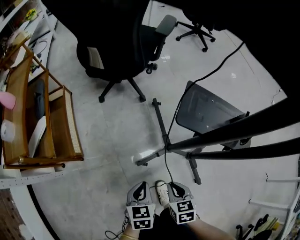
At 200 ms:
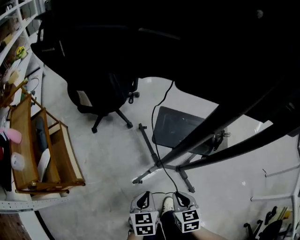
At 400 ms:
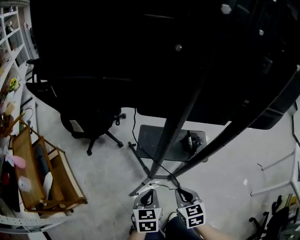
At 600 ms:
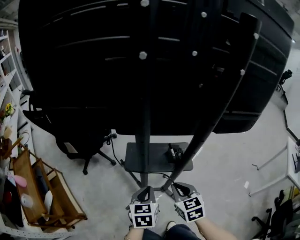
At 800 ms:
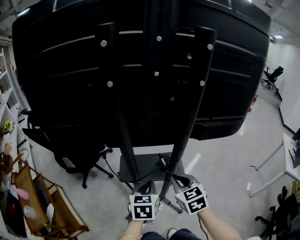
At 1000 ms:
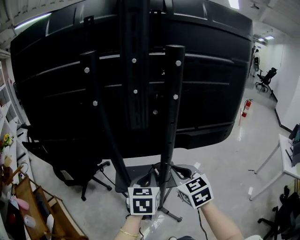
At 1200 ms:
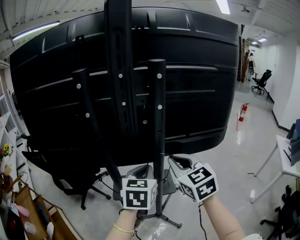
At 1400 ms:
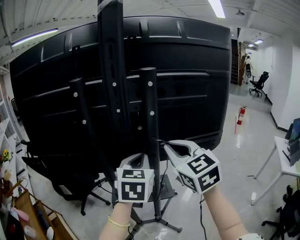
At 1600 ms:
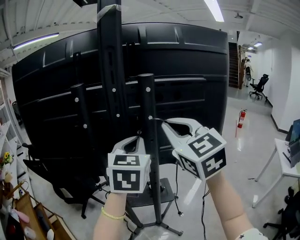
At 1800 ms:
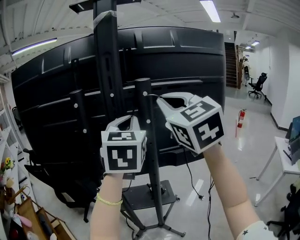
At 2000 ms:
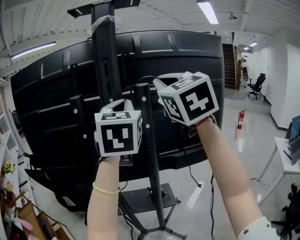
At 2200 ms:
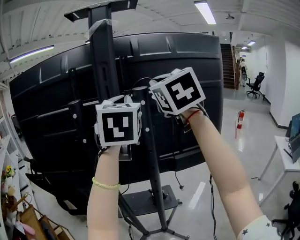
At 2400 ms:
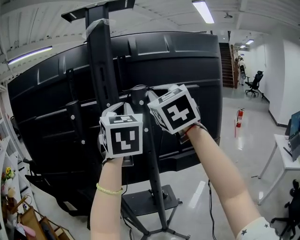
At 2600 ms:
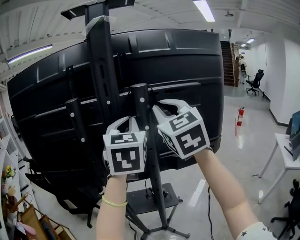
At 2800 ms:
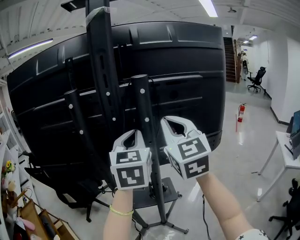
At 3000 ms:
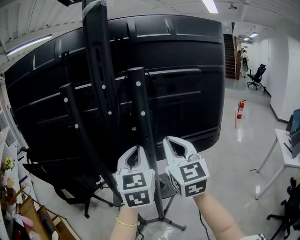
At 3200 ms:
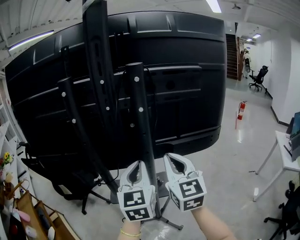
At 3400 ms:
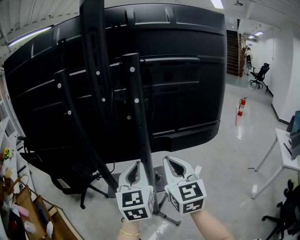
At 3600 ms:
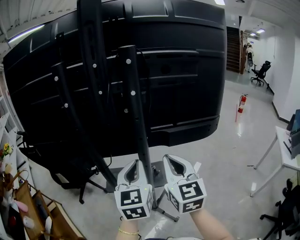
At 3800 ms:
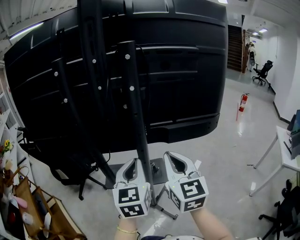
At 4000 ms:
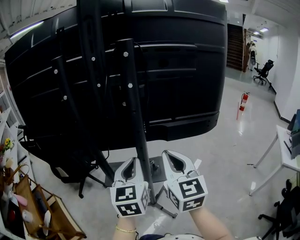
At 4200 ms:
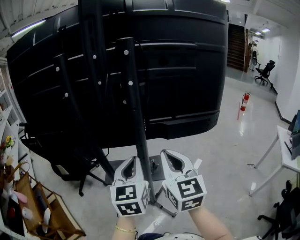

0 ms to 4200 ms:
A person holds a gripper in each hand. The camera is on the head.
0 ms to 1400 ms: Both grippers travel together upward, roughly 70 cm. The right gripper tips its fingers upward by approximately 50 degrees; the left gripper points its fingers approximately 30 degrees further upward.
1400 ms to 2800 ms: The two grippers go about 10 cm upward.
2800 ms to 4200 ms: The two grippers go approximately 20 cm downward and backward.

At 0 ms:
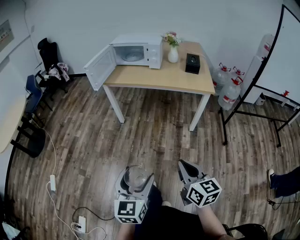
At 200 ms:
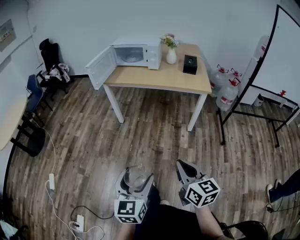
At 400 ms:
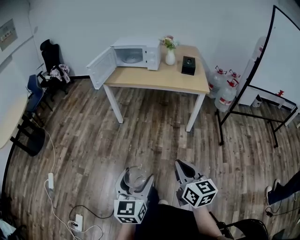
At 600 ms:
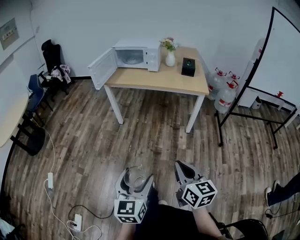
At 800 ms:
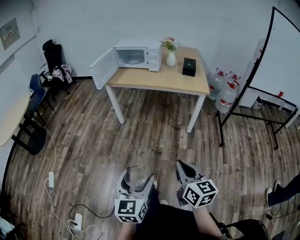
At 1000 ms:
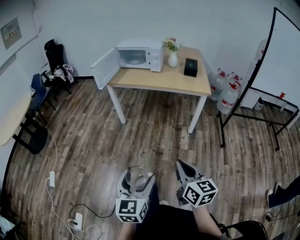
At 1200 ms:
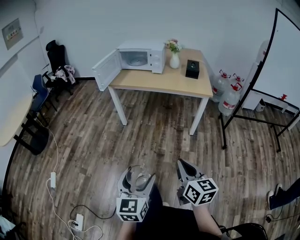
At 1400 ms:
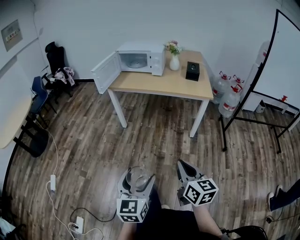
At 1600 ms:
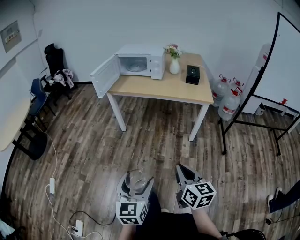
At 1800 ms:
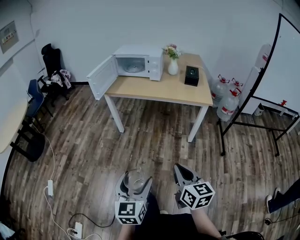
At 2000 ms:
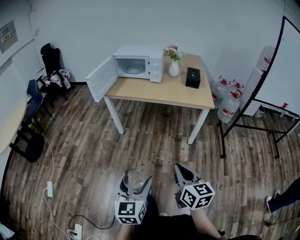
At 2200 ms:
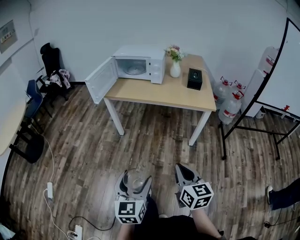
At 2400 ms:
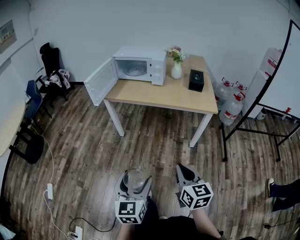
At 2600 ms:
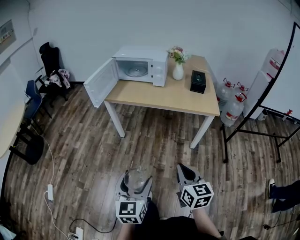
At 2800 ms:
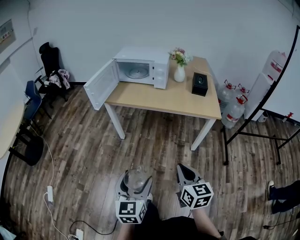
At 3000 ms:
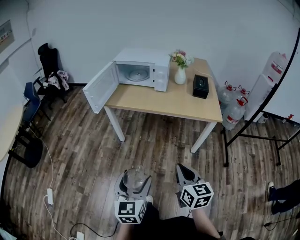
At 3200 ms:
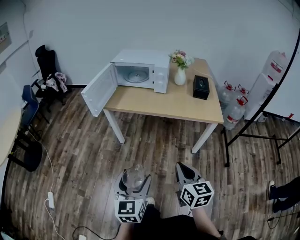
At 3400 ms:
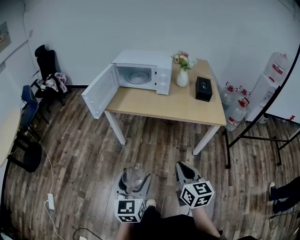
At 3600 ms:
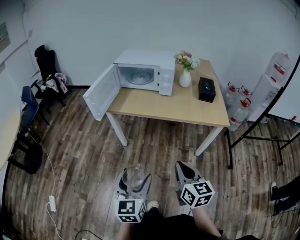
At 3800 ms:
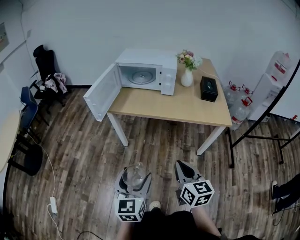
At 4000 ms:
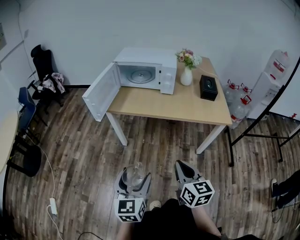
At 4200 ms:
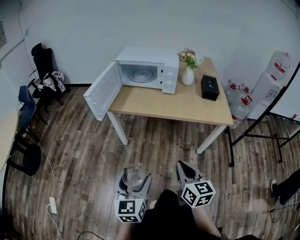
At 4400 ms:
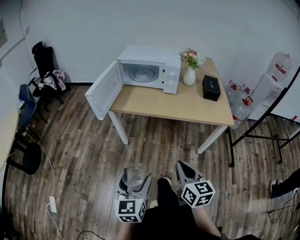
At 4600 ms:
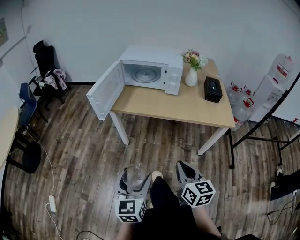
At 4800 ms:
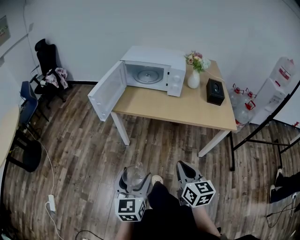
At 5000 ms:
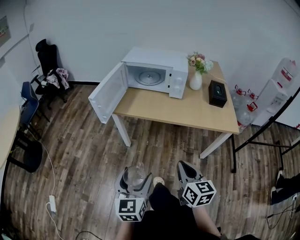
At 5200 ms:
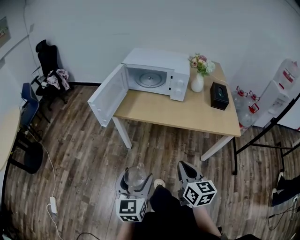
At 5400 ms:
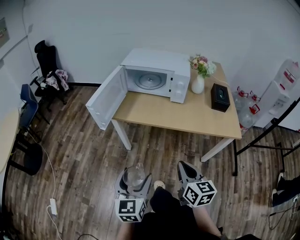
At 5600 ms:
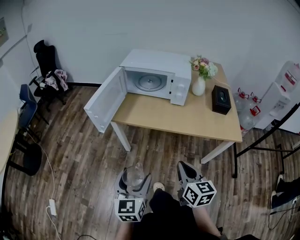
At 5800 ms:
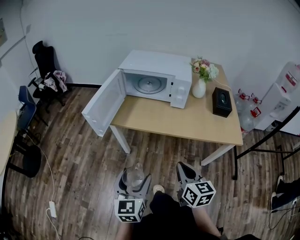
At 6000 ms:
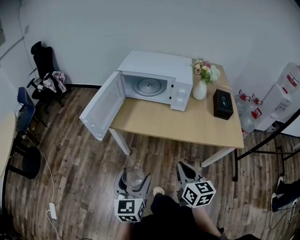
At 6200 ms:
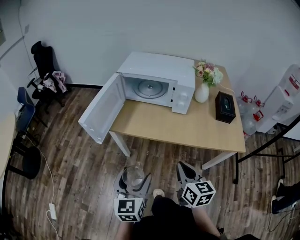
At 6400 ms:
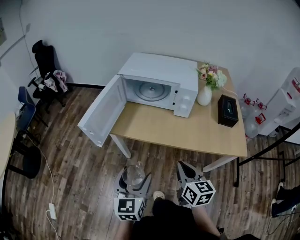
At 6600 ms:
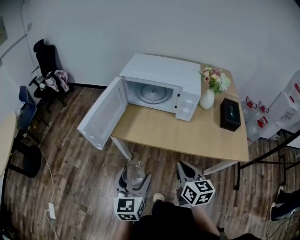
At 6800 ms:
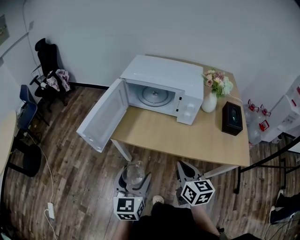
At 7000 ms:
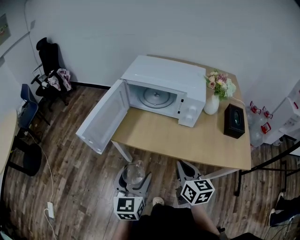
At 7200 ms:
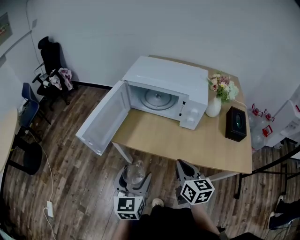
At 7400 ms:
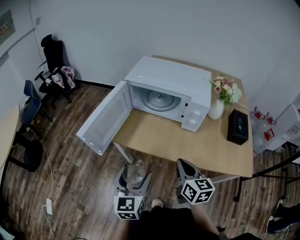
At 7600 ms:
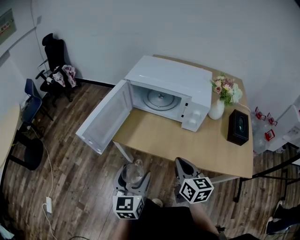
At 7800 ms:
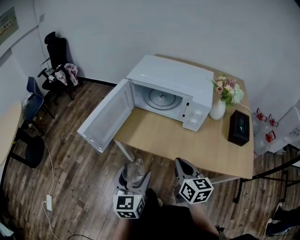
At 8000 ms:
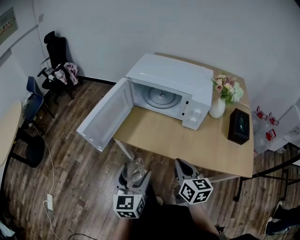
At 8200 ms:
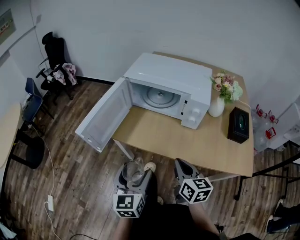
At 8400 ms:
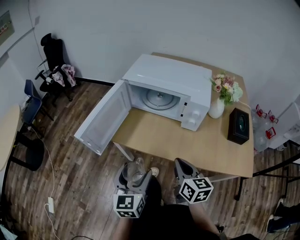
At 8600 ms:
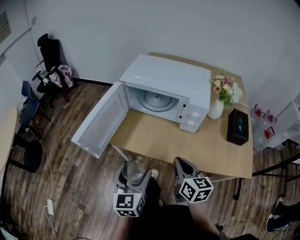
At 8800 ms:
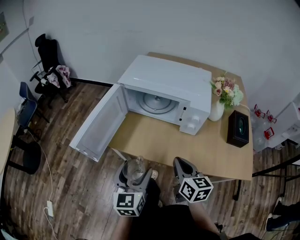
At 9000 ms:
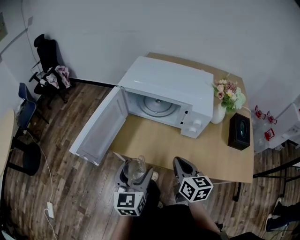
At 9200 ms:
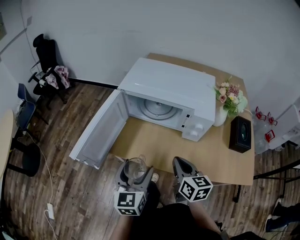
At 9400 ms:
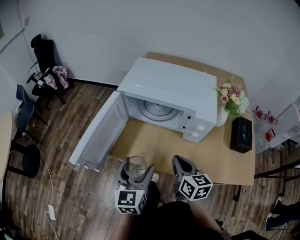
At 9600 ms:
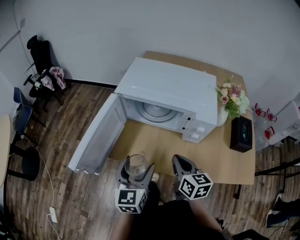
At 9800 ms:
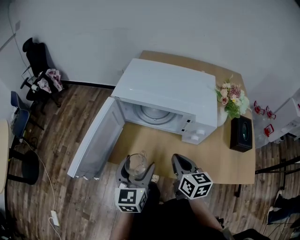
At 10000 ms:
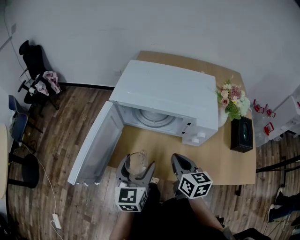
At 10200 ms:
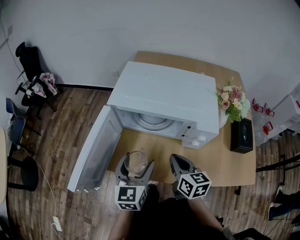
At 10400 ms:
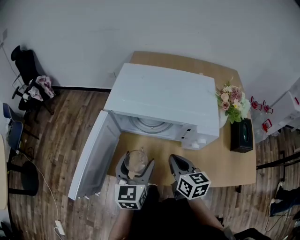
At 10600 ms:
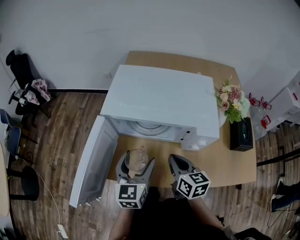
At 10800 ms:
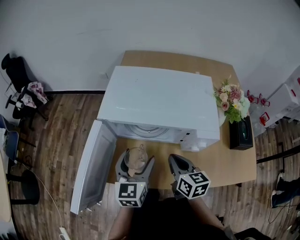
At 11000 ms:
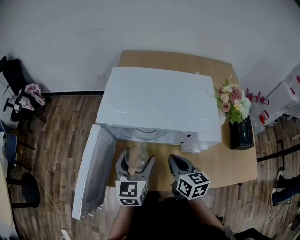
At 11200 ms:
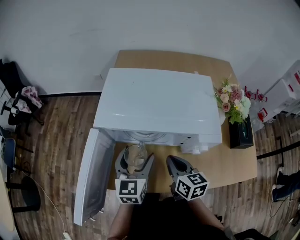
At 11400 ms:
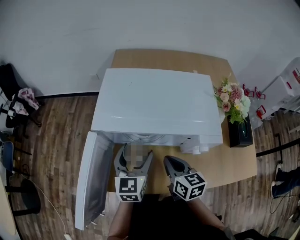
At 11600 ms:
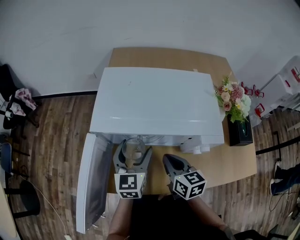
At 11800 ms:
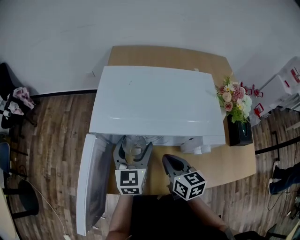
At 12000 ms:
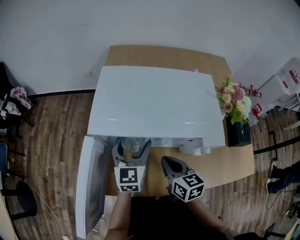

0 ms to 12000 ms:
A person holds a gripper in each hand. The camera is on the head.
0 ms to 1600 ms: The right gripper moves roughly 10 cm backward and comes back. Meanwhile the left gripper goes backward and returns, approximately 10 cm each way.
1600 ms to 3000 ms: The grippers both shift forward by about 20 cm.
3000 ms to 4400 ms: Both grippers move forward and to the left, about 15 cm.
4400 ms to 6000 ms: The grippers both shift forward by roughly 20 cm.
6000 ms to 7600 ms: The grippers both shift forward by approximately 15 cm.
7600 ms to 9000 ms: Both grippers move forward, approximately 10 cm.
9000 ms to 10400 ms: The two grippers go approximately 15 cm forward.
10400 ms to 12000 ms: The left gripper moves forward, approximately 15 cm. Meanwhile the right gripper shifts about 5 cm forward.

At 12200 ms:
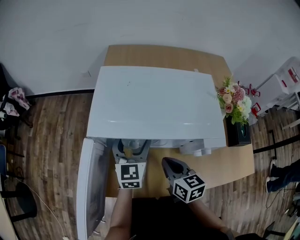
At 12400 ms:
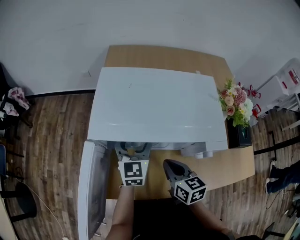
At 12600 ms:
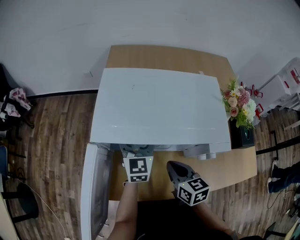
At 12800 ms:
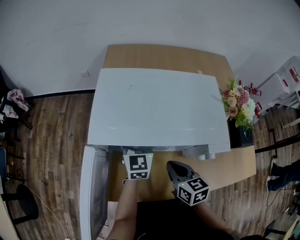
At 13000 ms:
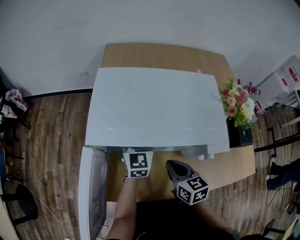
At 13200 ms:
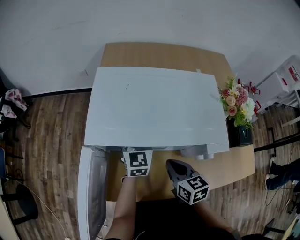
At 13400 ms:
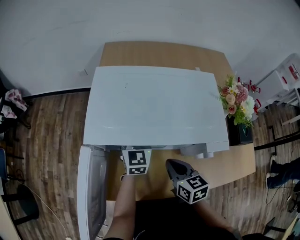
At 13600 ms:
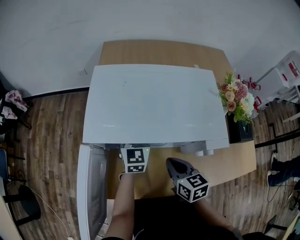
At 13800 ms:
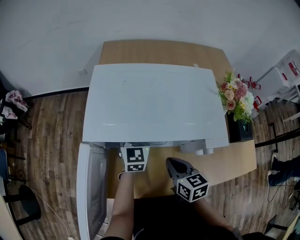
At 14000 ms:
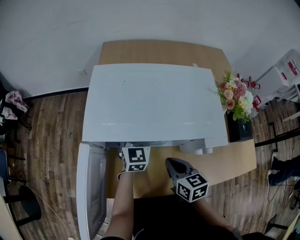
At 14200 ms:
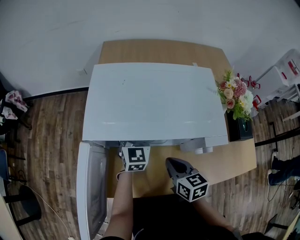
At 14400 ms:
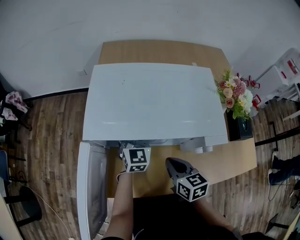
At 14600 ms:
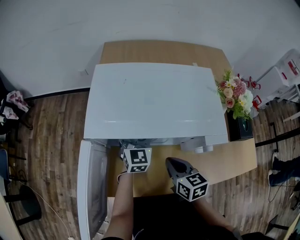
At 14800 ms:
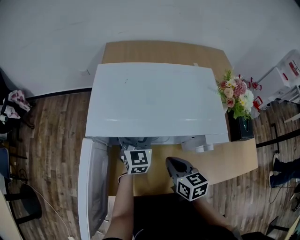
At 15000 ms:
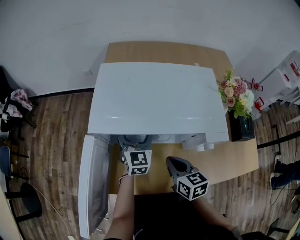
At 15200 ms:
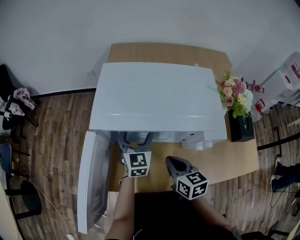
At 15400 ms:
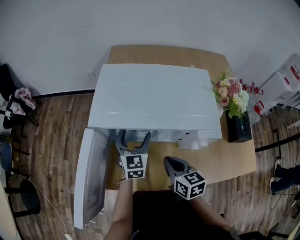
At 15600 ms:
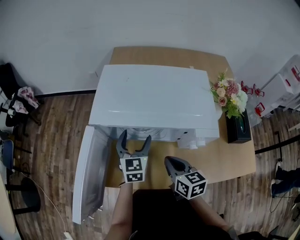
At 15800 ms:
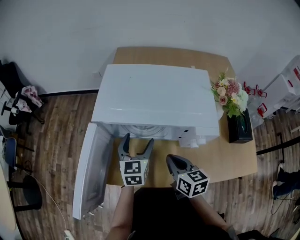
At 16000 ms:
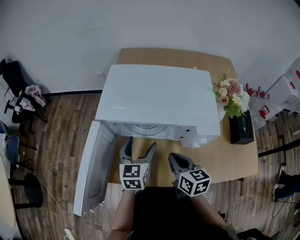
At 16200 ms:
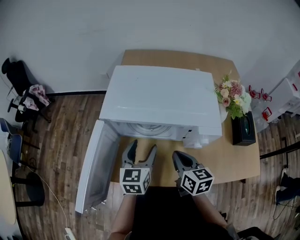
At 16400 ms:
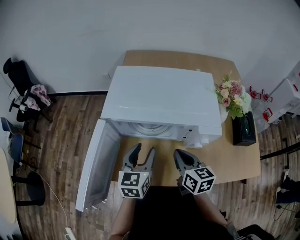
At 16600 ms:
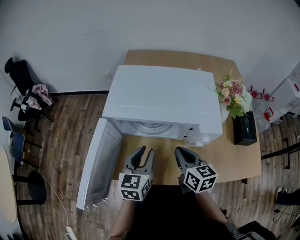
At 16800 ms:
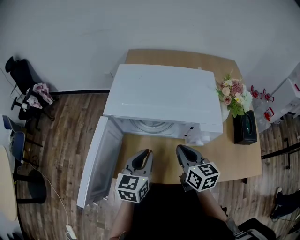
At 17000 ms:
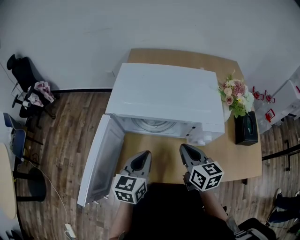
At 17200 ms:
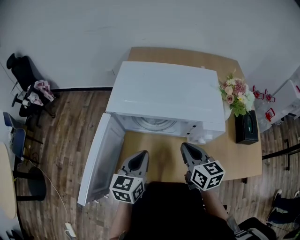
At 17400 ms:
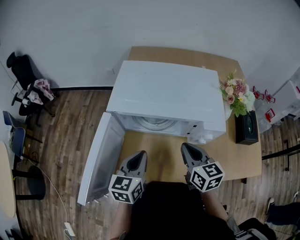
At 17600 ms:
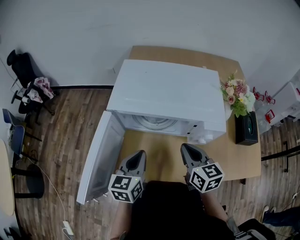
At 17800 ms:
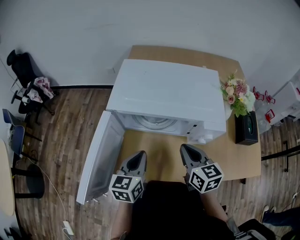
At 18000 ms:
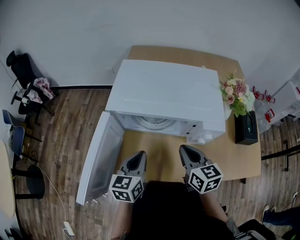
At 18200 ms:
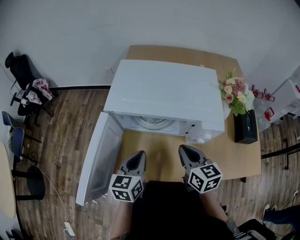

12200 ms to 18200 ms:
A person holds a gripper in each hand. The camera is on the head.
12200 ms to 13800 ms: The left gripper heads forward, covering some 5 cm.
13800 ms to 15200 ms: The left gripper changes place by approximately 5 cm.
15200 ms to 16600 ms: The right gripper is displaced upward by about 5 cm, while the left gripper goes some 15 cm backward and upward, and closes its fingers.
16600 ms to 18200 ms: The grippers move only a little.

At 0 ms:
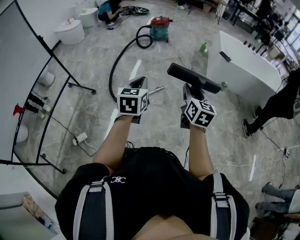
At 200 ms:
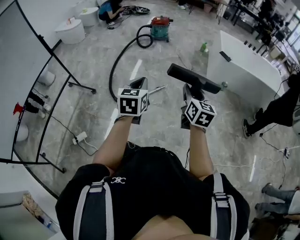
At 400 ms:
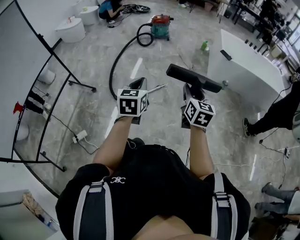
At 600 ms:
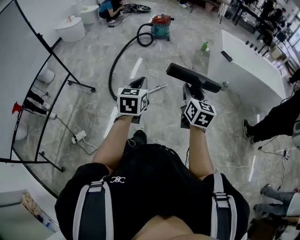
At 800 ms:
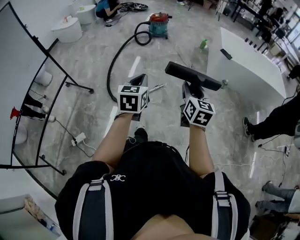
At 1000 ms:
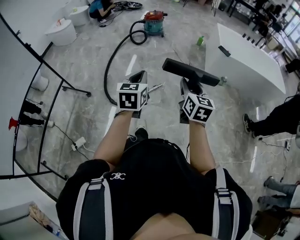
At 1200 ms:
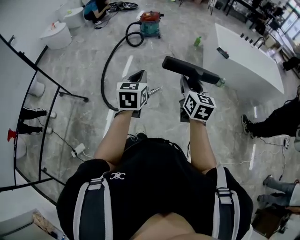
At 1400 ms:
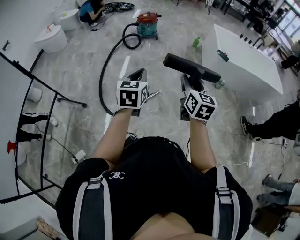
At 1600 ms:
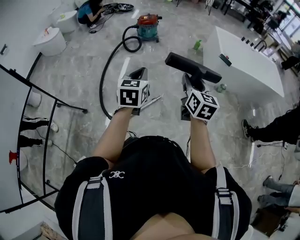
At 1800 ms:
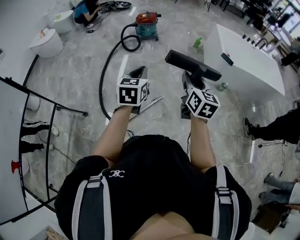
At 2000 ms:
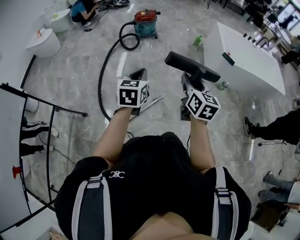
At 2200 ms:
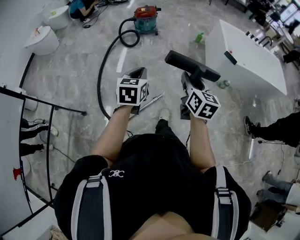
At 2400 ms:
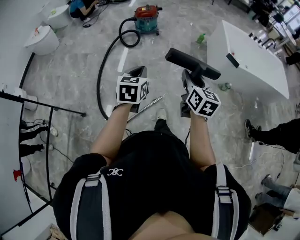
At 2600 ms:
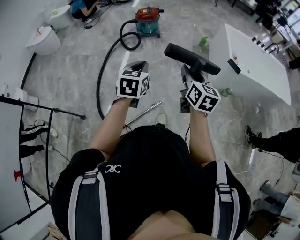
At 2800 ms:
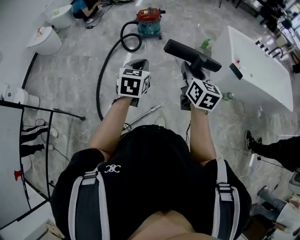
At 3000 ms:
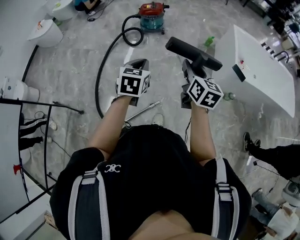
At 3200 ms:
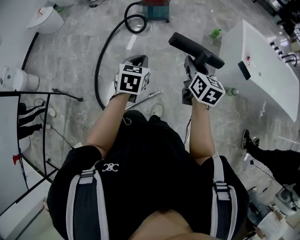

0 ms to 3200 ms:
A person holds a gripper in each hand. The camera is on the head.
0 ms to 1600 ms: Both grippers move forward, roughly 30 cm.
1600 ms to 3200 ms: Both grippers travel together forward, approximately 35 cm.
